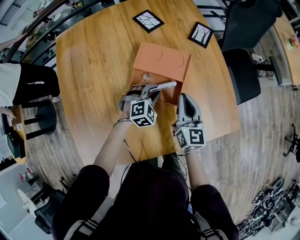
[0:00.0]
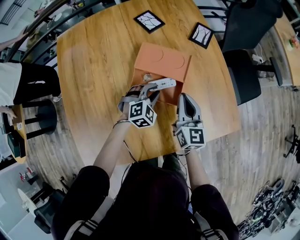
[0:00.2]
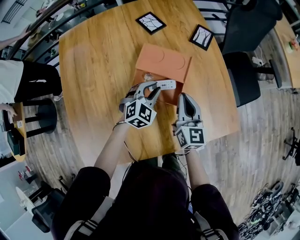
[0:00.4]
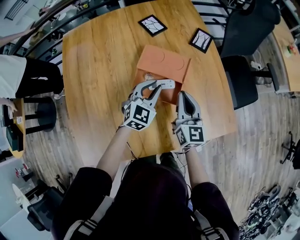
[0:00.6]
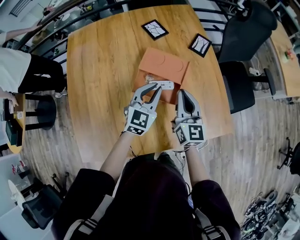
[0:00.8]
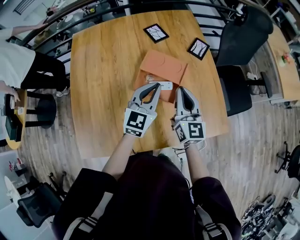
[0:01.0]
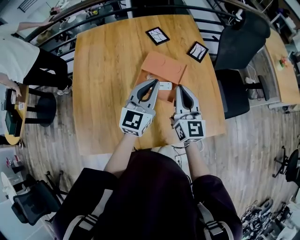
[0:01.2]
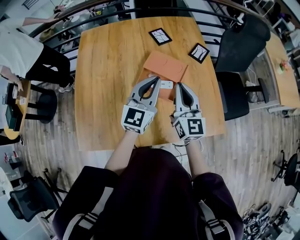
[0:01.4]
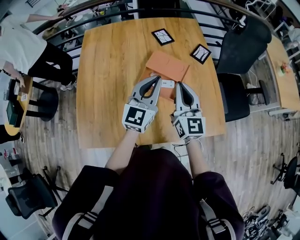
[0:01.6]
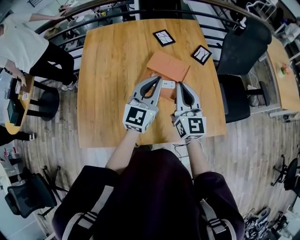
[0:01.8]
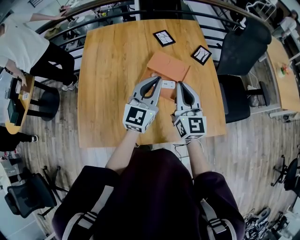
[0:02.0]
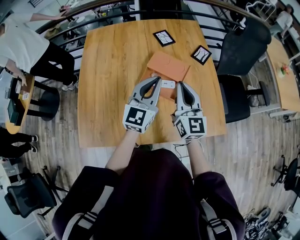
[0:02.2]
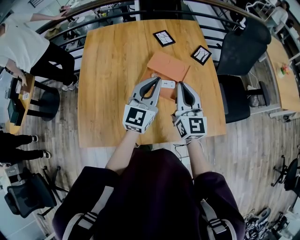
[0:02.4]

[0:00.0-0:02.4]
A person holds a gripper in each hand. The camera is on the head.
0:00.0 to 0:01.2: The left gripper shifts about 30 cm upward, and tips its fingers upward by about 50 degrees. Meanwhile the right gripper goes approximately 15 cm upward.
0:01.2 to 0:02.4: There are only small adjustments of the grippers.

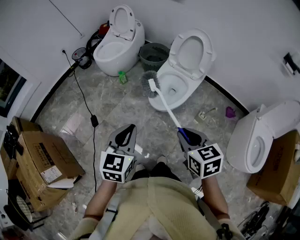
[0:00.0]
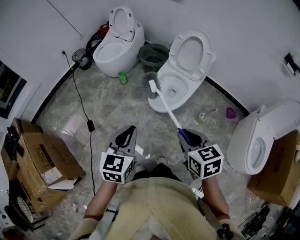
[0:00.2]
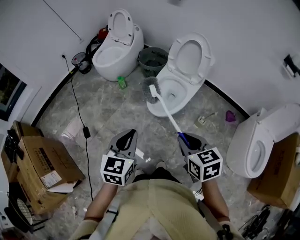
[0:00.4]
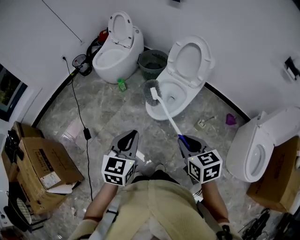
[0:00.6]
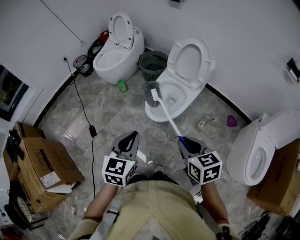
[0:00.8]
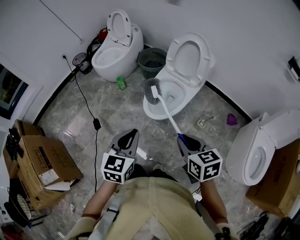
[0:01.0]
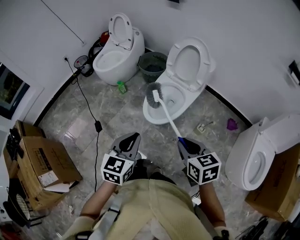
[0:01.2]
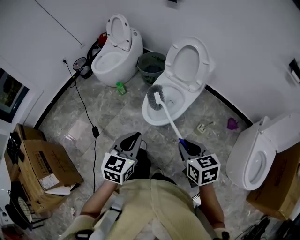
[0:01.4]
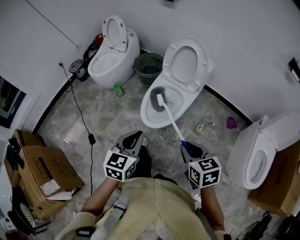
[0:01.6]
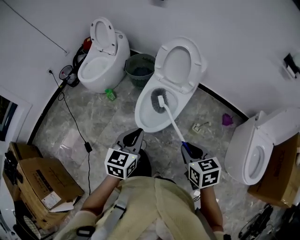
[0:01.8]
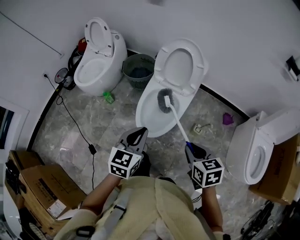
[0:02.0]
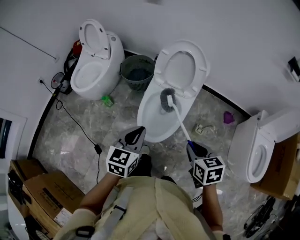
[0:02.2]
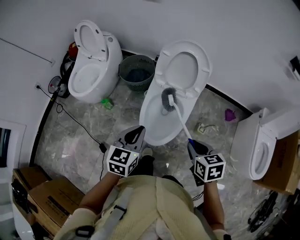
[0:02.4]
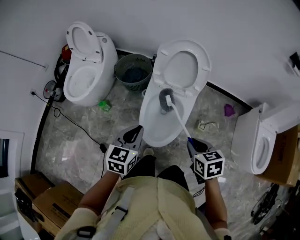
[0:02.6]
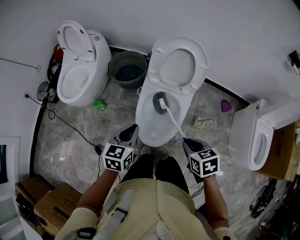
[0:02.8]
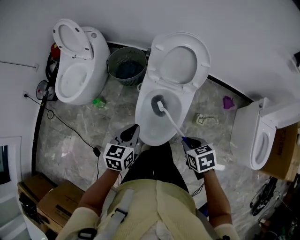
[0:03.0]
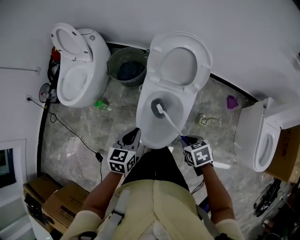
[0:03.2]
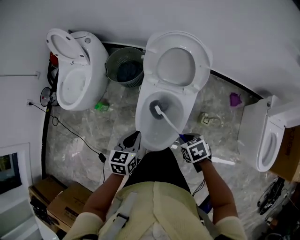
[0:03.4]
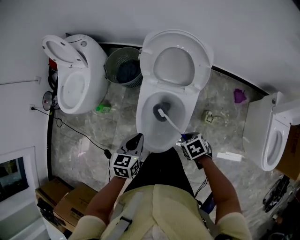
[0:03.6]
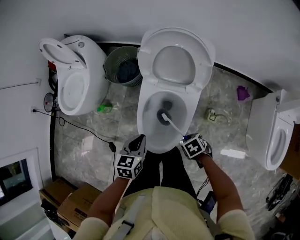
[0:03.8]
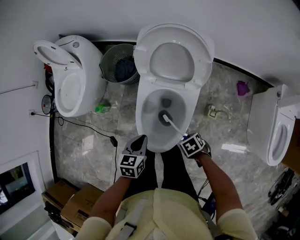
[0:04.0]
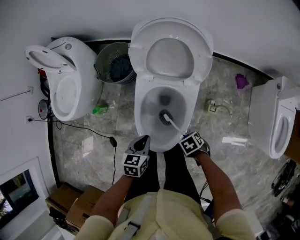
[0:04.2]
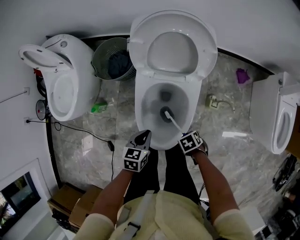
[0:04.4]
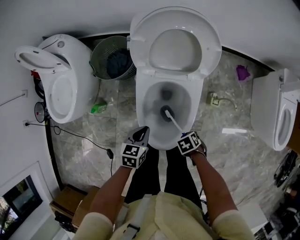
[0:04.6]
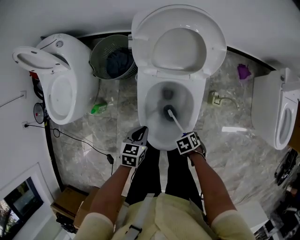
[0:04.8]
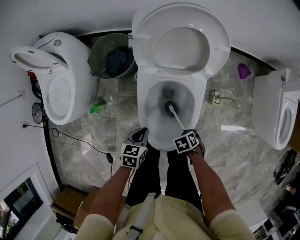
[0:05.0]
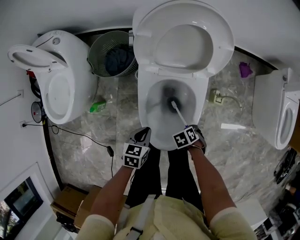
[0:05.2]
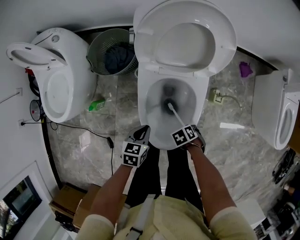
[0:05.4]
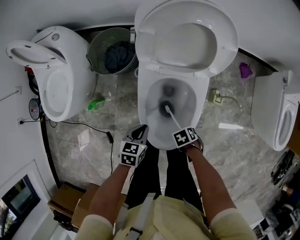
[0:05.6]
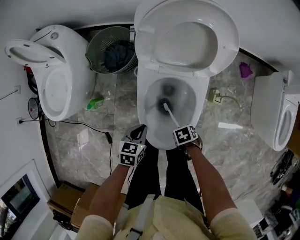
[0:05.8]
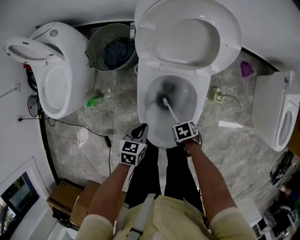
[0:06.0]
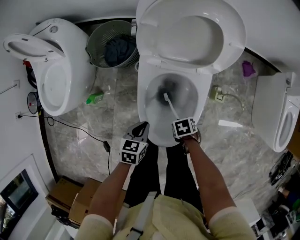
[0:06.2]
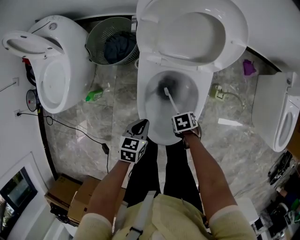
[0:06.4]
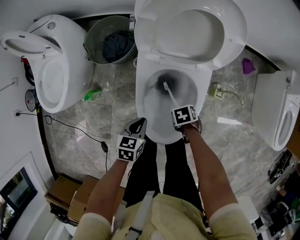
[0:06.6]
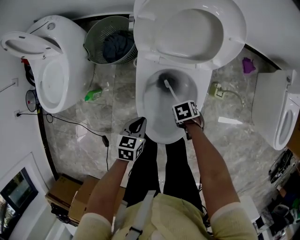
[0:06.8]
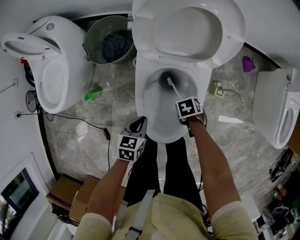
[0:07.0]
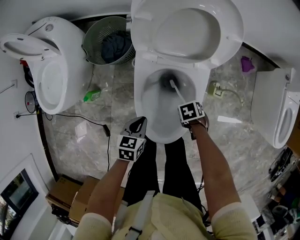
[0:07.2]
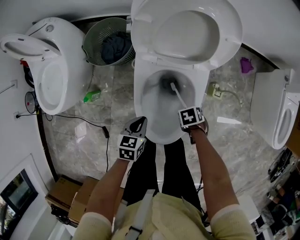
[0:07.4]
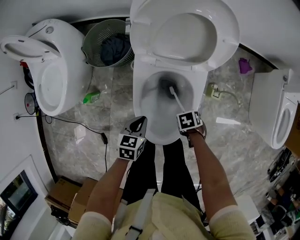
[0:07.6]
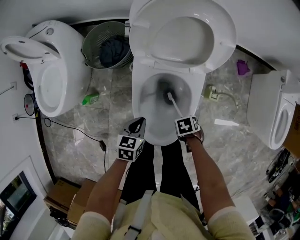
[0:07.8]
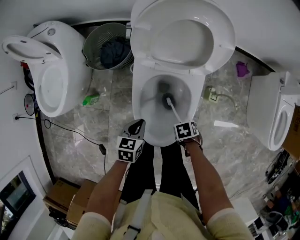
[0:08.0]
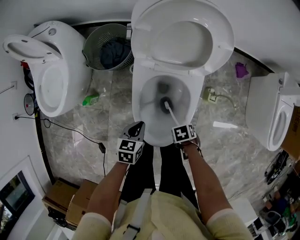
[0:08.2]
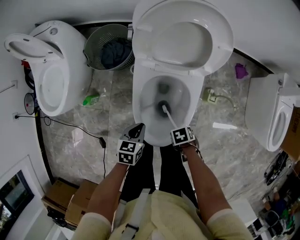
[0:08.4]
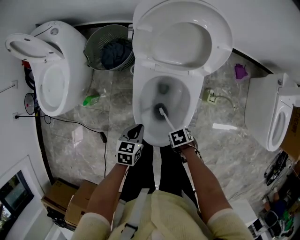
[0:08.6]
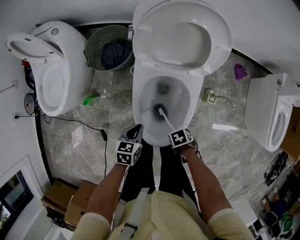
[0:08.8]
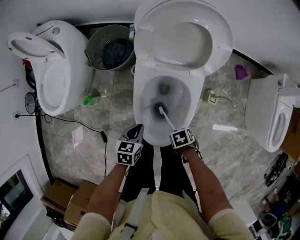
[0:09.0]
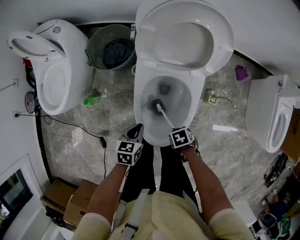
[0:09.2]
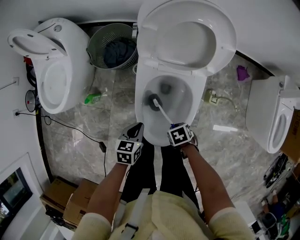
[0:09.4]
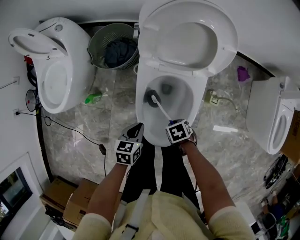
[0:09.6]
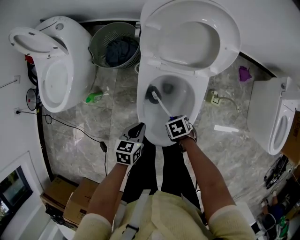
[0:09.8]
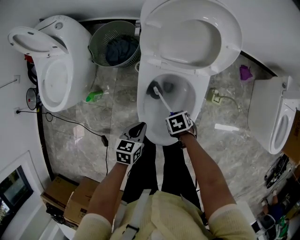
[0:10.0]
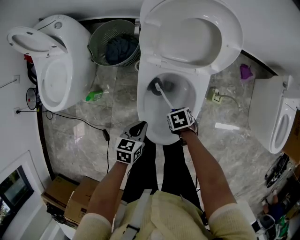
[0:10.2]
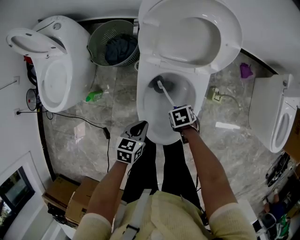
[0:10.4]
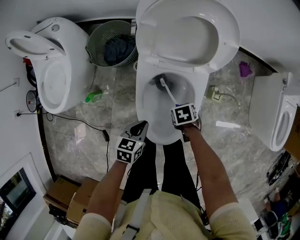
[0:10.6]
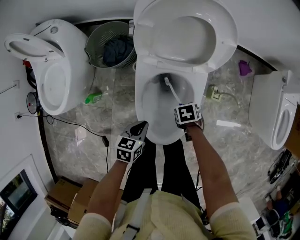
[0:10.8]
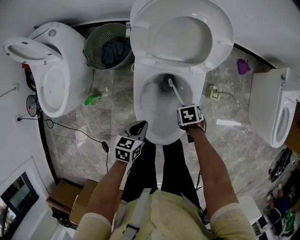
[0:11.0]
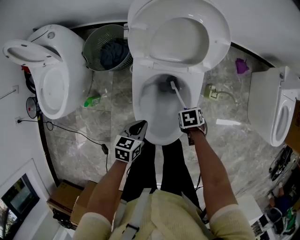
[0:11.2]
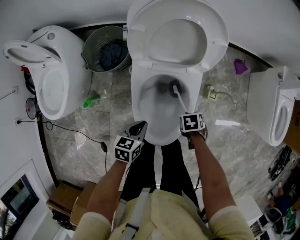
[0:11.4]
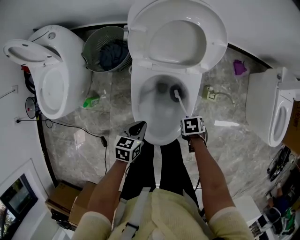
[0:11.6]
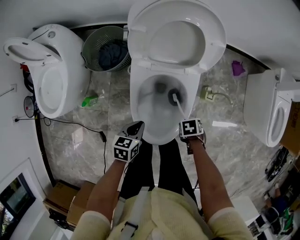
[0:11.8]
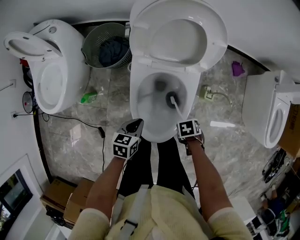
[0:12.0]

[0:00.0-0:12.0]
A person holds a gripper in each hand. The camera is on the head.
0:00.0 to 0:01.6: The left gripper changes place by roughly 15 cm.
0:01.6 to 0:03.0: The left gripper ends up approximately 35 cm from where it was.
0:03.0 to 0:04.4: The left gripper heads downward, covering roughly 20 cm, and swivels about 20 degrees.
0:04.4 to 0:06.0: The left gripper is displaced downward by about 5 cm.

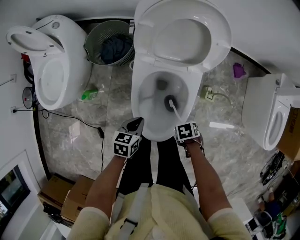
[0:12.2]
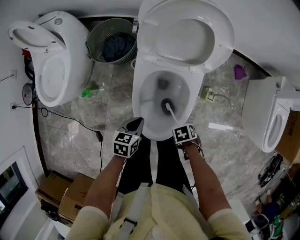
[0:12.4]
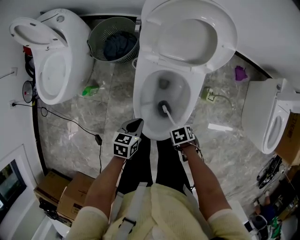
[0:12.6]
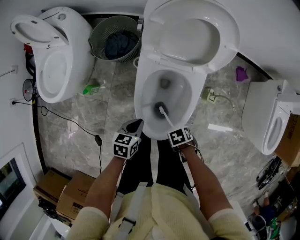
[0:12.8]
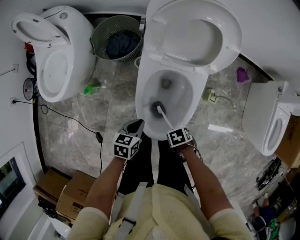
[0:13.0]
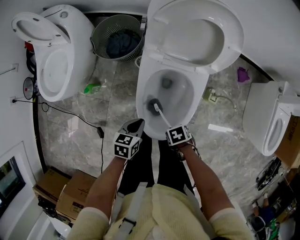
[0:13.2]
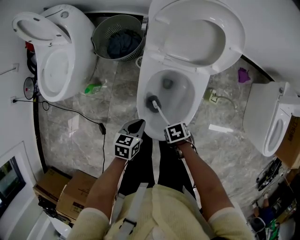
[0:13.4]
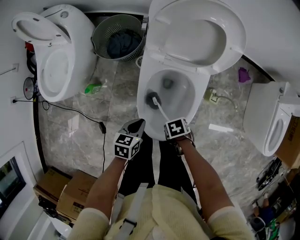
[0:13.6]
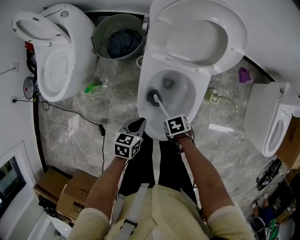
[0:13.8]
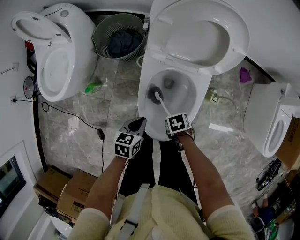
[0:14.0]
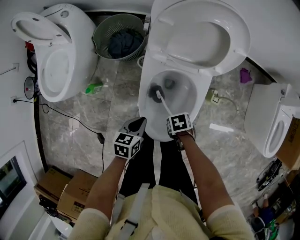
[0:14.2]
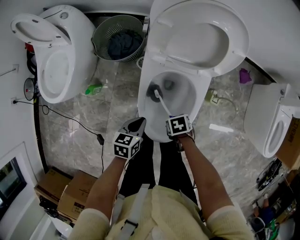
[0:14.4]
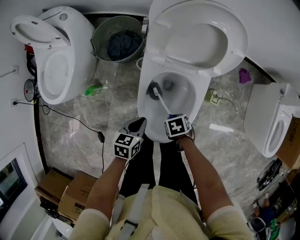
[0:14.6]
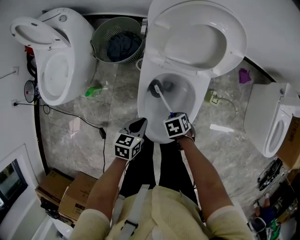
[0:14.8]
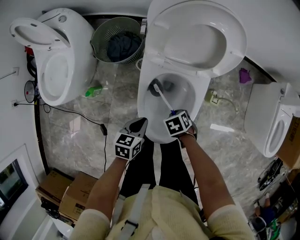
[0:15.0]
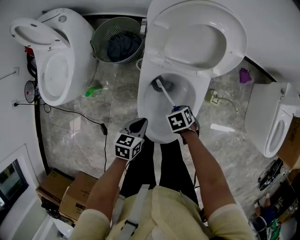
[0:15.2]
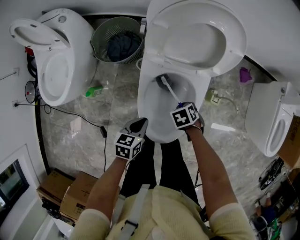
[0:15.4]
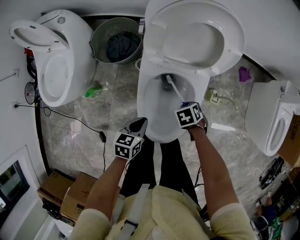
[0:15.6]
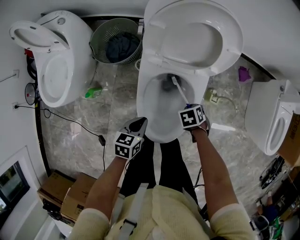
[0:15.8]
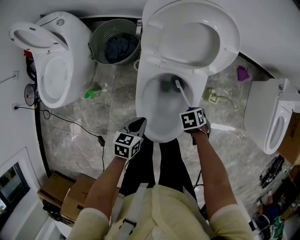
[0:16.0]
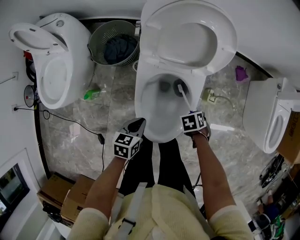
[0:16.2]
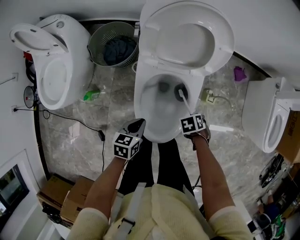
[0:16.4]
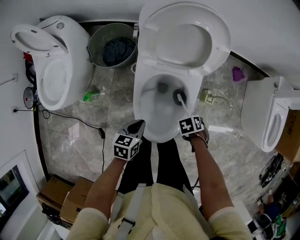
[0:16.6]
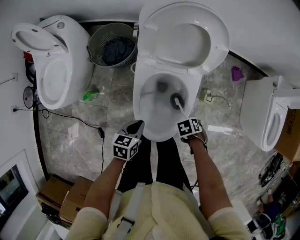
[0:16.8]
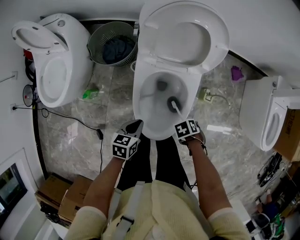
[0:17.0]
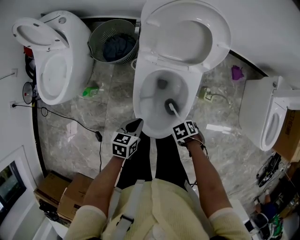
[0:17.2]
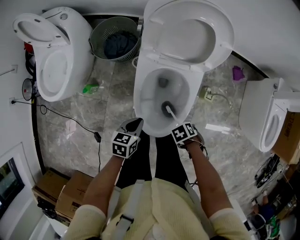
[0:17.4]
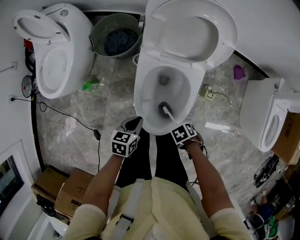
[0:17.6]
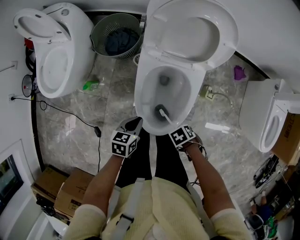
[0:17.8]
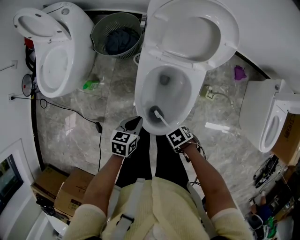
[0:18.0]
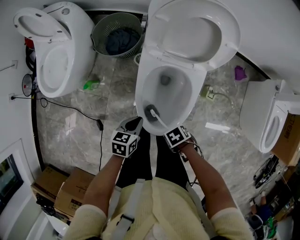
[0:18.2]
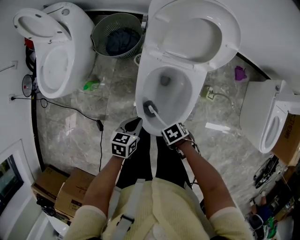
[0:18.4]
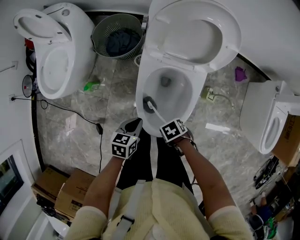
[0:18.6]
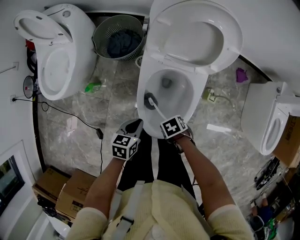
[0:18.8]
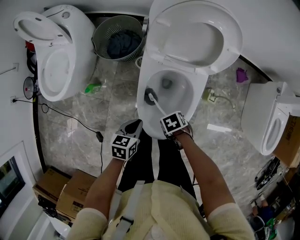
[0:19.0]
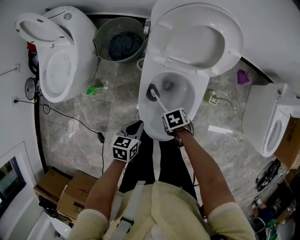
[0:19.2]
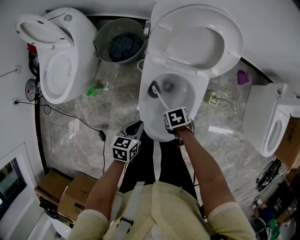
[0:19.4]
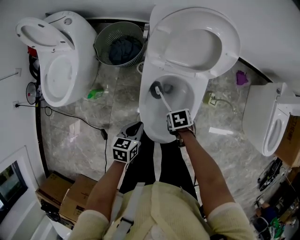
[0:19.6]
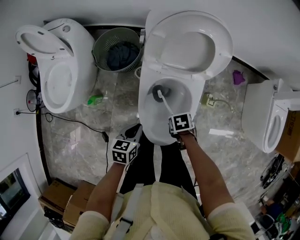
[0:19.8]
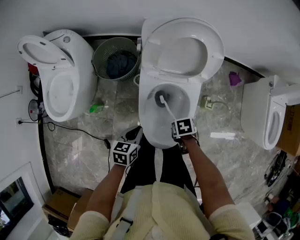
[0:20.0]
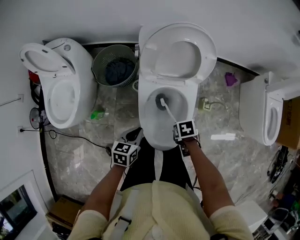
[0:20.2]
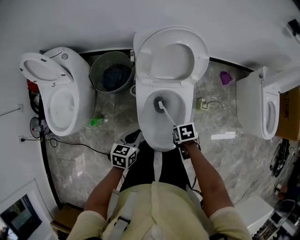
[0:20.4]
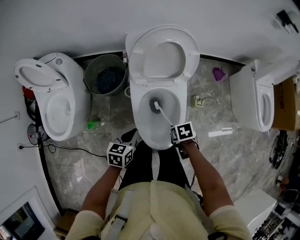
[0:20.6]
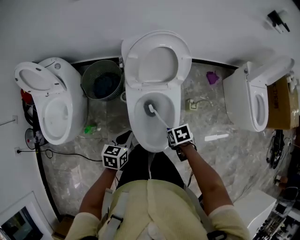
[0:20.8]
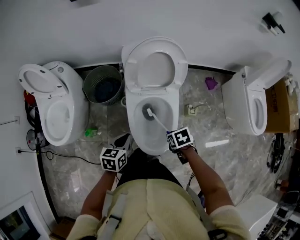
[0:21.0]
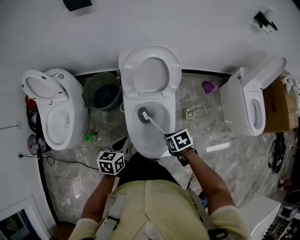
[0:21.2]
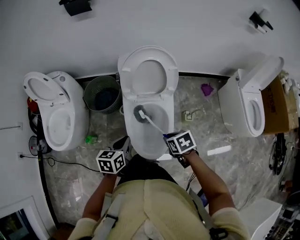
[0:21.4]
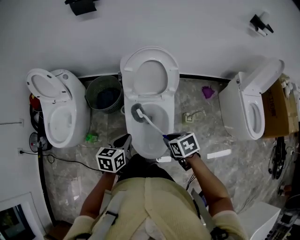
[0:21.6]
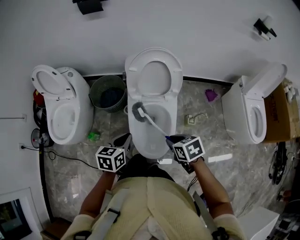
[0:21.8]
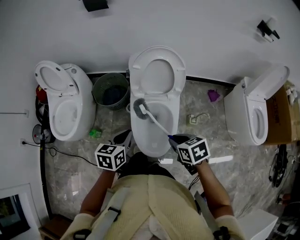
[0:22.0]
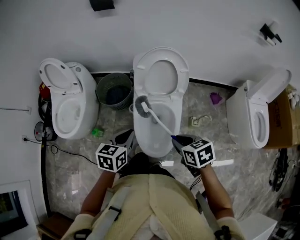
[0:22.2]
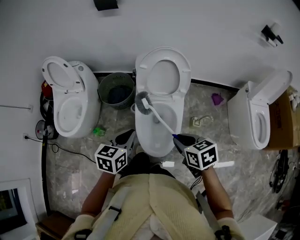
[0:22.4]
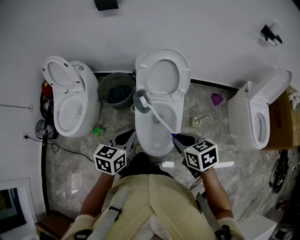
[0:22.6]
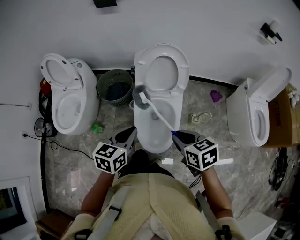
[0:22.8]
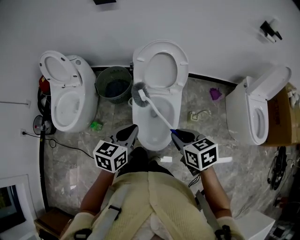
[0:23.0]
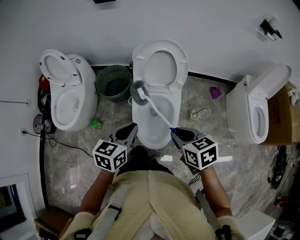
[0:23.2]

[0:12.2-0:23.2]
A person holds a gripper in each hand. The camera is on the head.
0:18.4 to 0:20.0: The left gripper moves some 5 cm.
0:20.0 to 0:21.6: The left gripper travels upward by approximately 15 cm.
0:21.6 to 0:23.2: The left gripper is displaced upward by roughly 10 cm.
